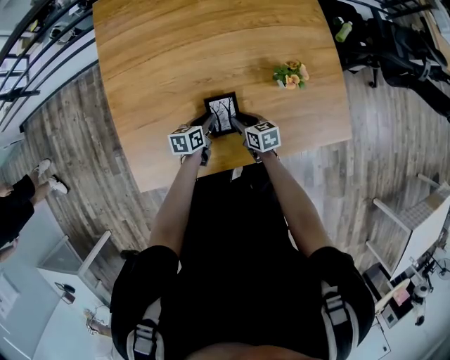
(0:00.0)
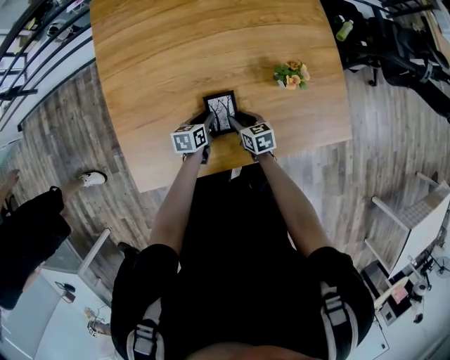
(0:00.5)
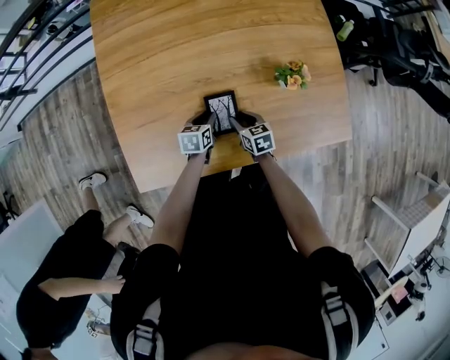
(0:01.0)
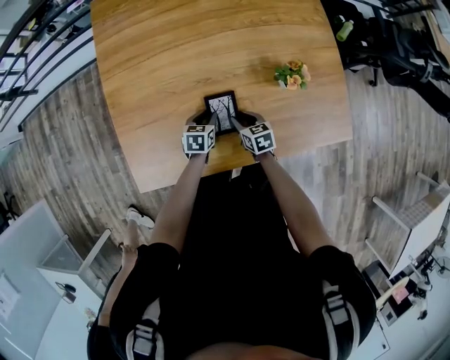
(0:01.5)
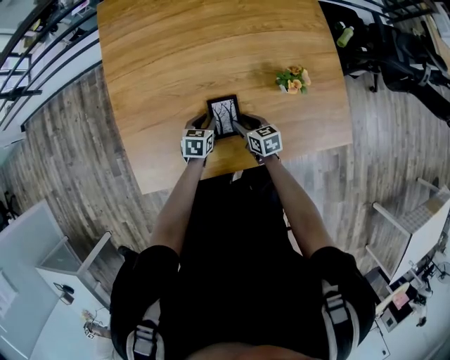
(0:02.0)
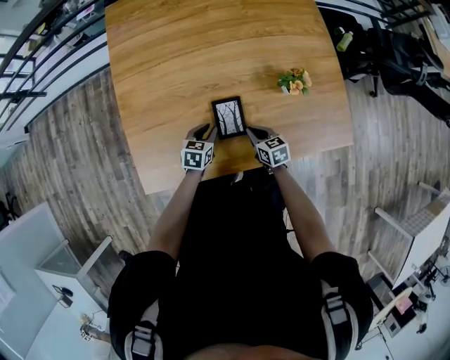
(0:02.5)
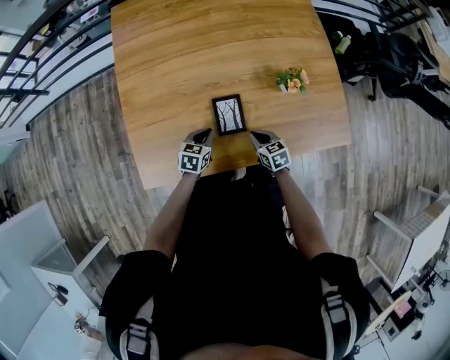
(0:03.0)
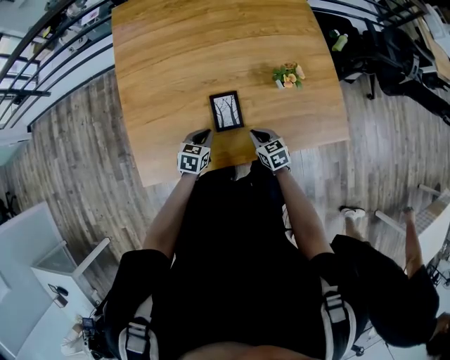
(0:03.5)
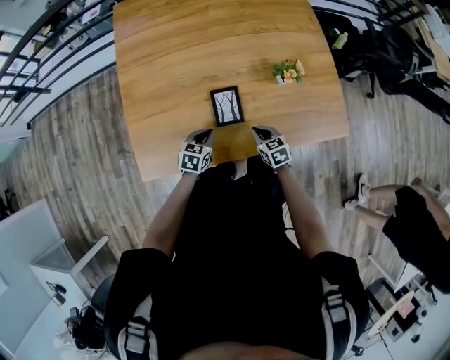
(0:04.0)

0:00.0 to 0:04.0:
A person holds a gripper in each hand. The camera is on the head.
0:00.0 to 0:02.0: The left gripper changes its angle by roughly 20 degrees.
0:02.0 to 0:04.0: The grippers both shift backward by approximately 10 cm. The right gripper closes. The left gripper closes its fingers.

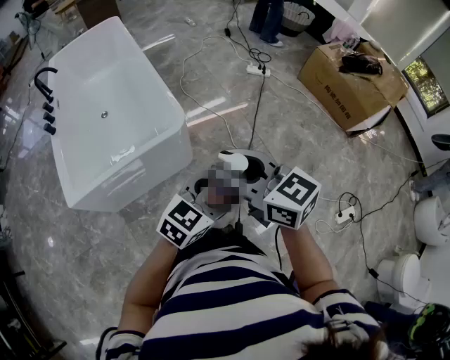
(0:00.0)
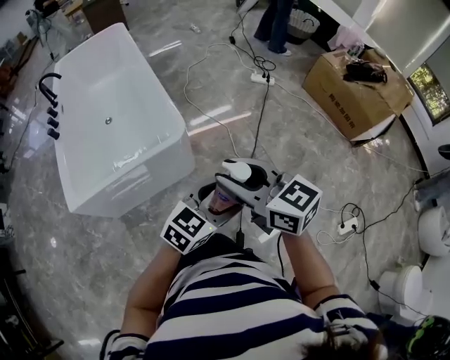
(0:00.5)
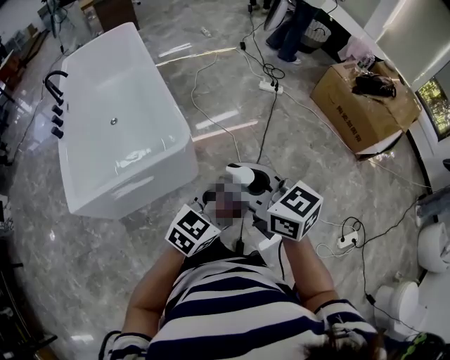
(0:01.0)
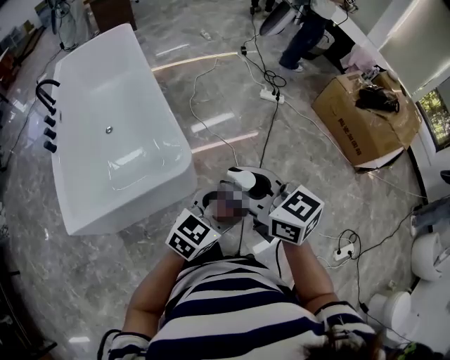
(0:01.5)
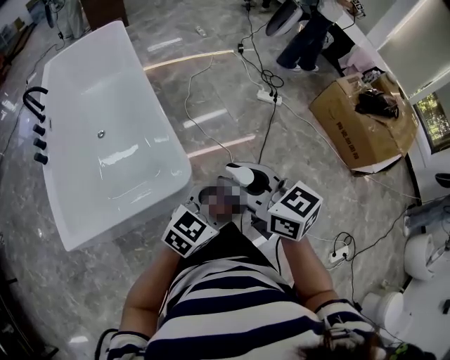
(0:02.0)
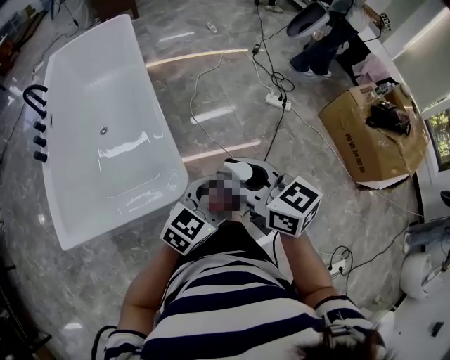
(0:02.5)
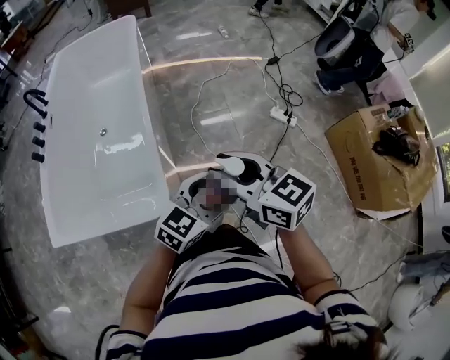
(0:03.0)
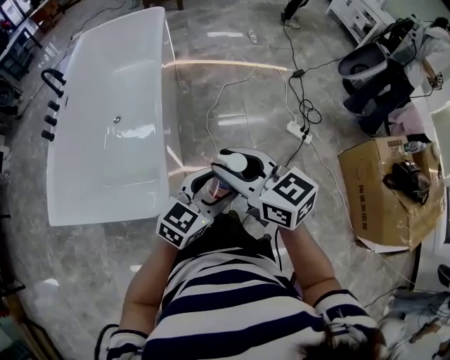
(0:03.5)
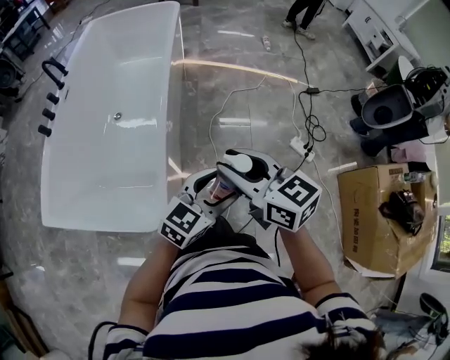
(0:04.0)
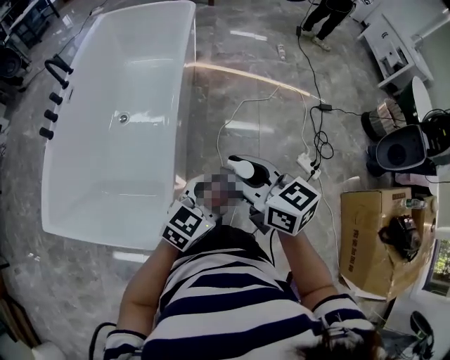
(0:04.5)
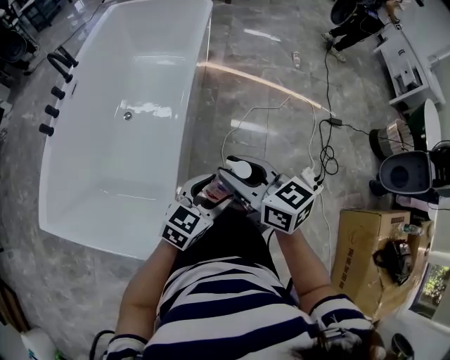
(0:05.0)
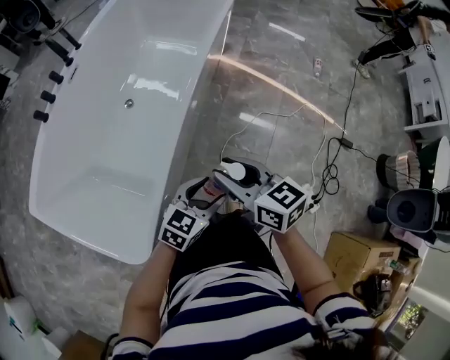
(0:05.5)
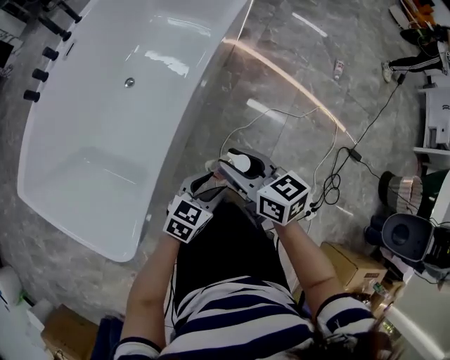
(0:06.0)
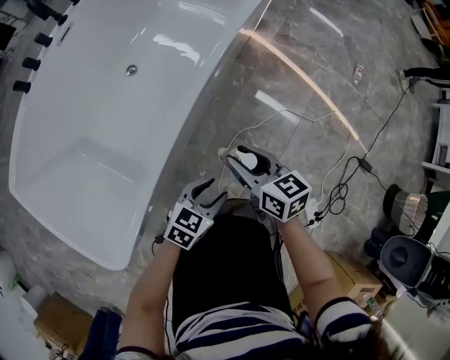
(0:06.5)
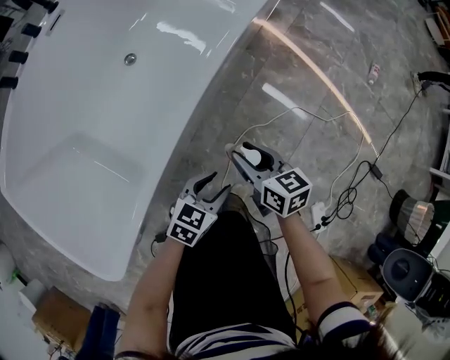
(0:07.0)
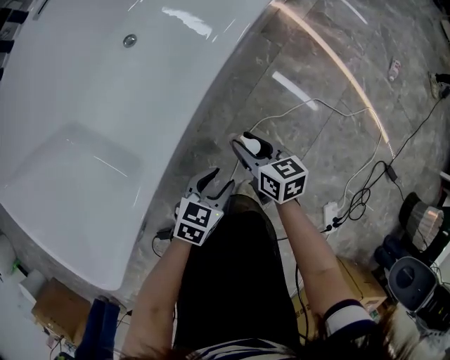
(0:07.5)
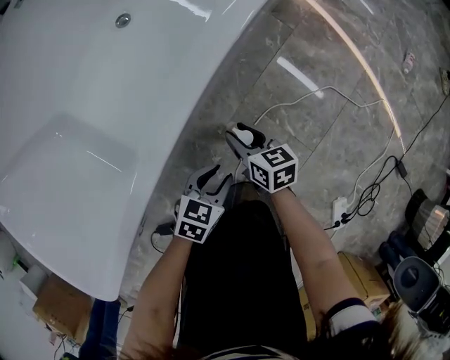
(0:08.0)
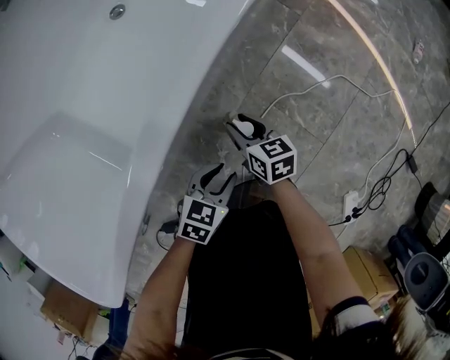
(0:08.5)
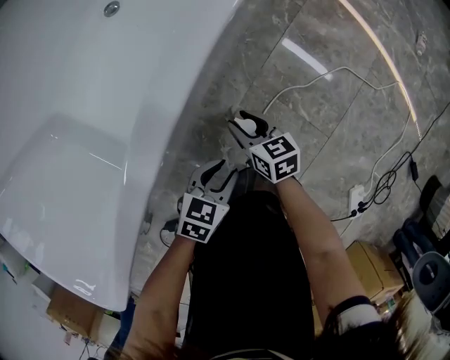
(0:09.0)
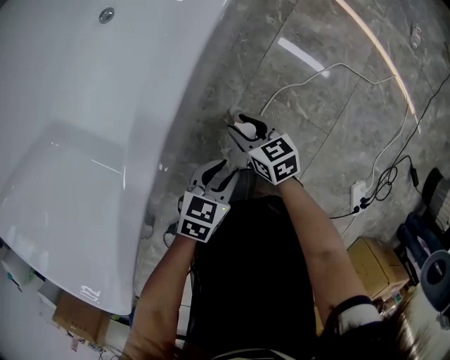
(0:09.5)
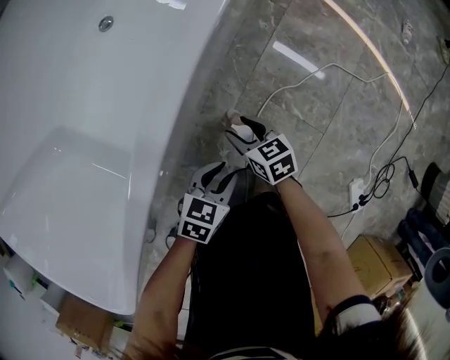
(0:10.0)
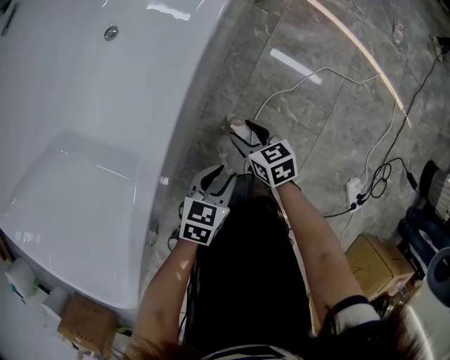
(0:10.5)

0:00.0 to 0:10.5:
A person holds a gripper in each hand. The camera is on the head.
0:00.0 to 0:02.0: The two grippers go some 20 cm forward.
0:02.0 to 0:04.0: The right gripper shifts by some 30 cm, and rotates approximately 20 degrees; the left gripper moves approximately 30 cm, and swivels approximately 30 degrees.
0:04.0 to 0:06.5: The two grippers go approximately 40 cm forward and downward. The left gripper changes its angle by about 40 degrees. The right gripper turns by some 30 degrees.
0:06.5 to 0:08.5: The grippers both shift downward by some 30 cm.
0:08.5 to 0:10.5: The grippers make only small movements.

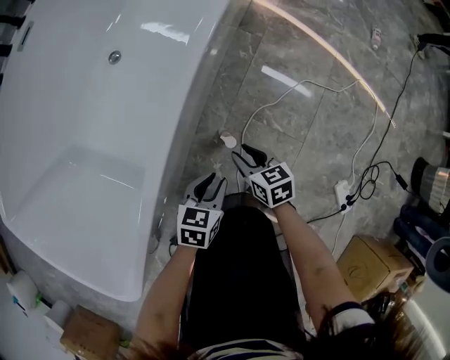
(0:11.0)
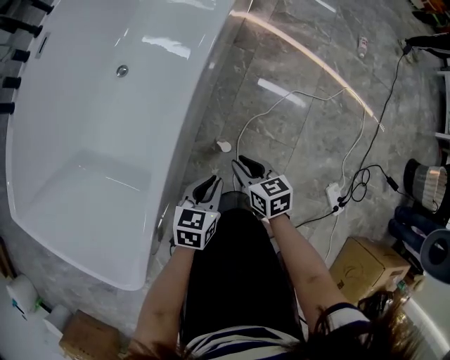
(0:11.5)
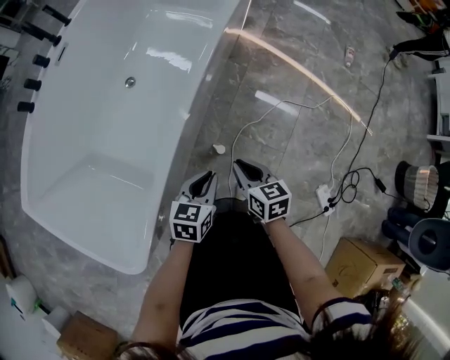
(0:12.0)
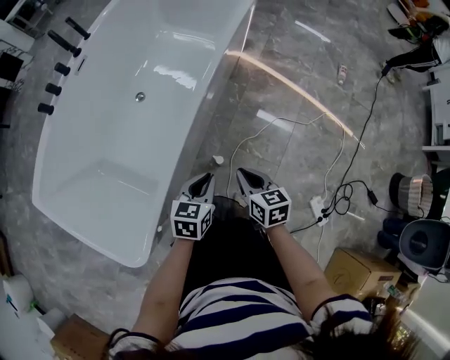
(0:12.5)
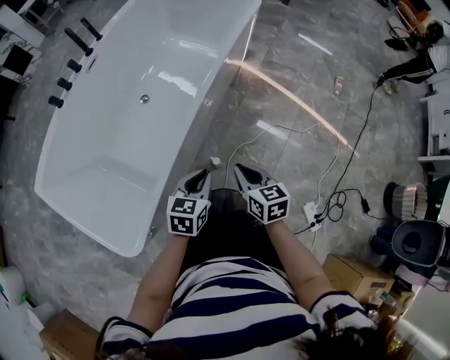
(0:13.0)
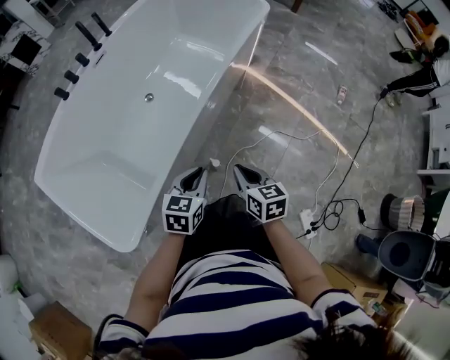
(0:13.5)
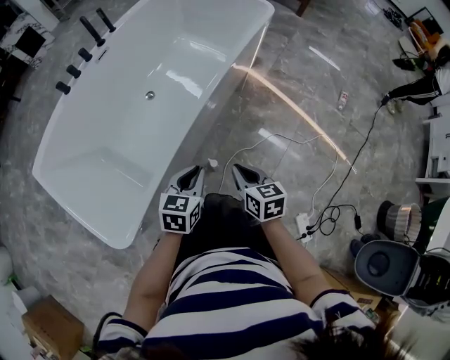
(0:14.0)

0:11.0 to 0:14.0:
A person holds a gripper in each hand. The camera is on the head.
0:11.0 to 0:12.5: Both grippers travel together upward, some 25 cm. The right gripper closes its fingers.
0:12.5 to 0:14.0: The two grippers go roughly 5 cm upward.

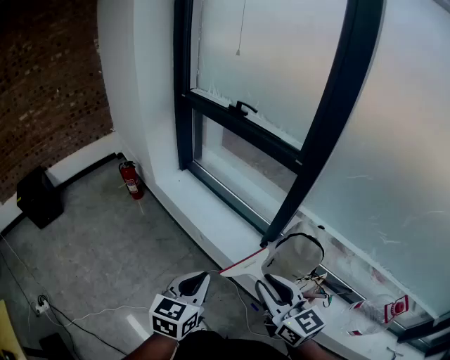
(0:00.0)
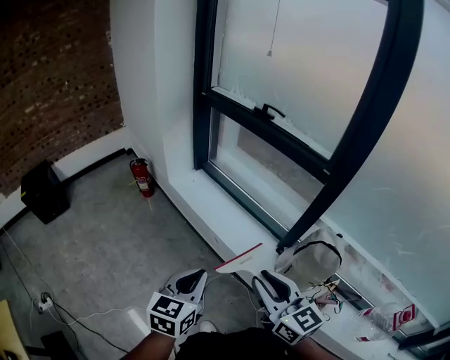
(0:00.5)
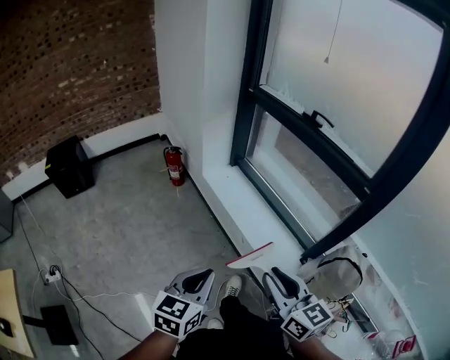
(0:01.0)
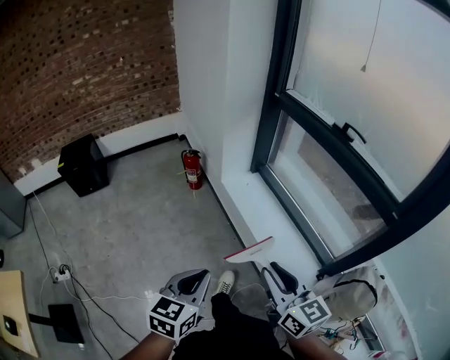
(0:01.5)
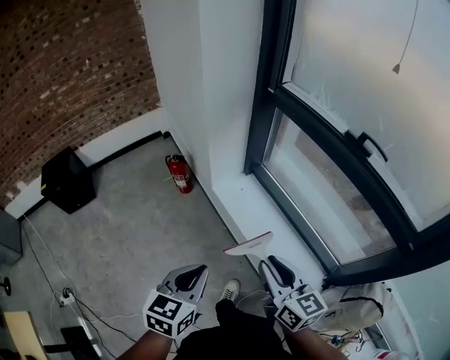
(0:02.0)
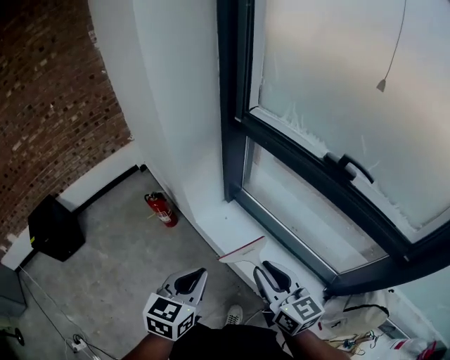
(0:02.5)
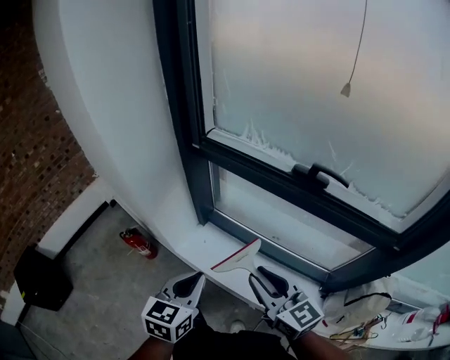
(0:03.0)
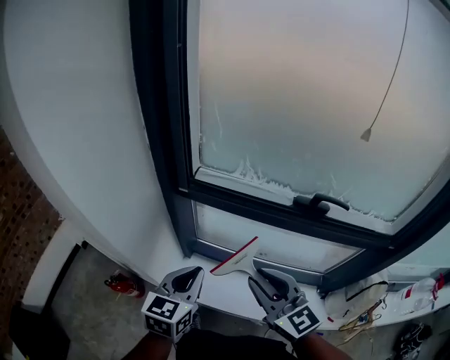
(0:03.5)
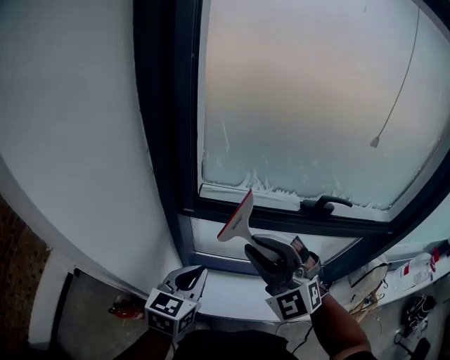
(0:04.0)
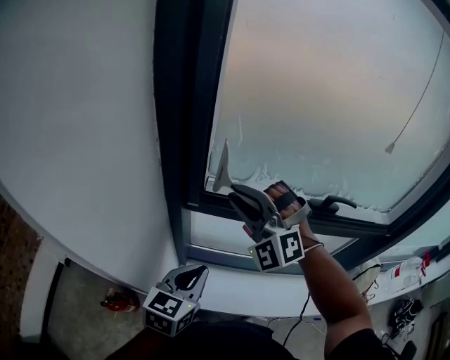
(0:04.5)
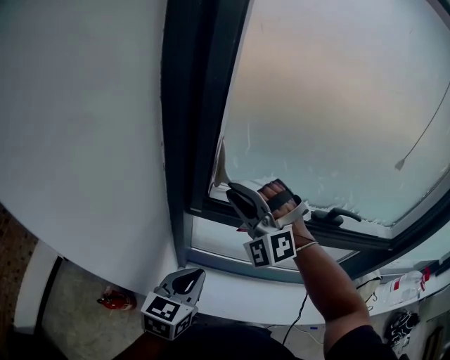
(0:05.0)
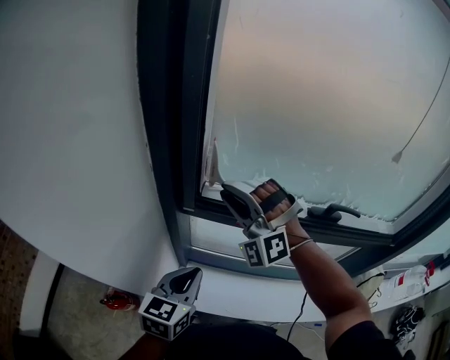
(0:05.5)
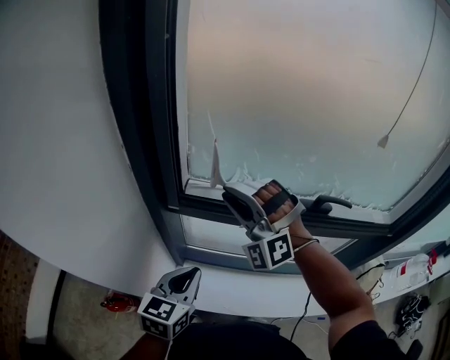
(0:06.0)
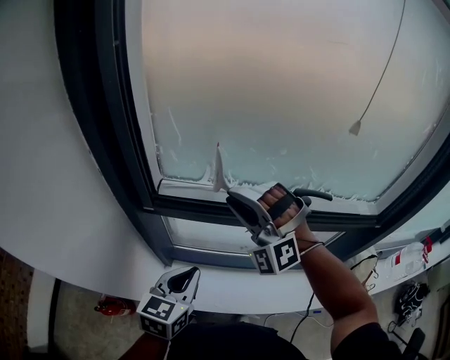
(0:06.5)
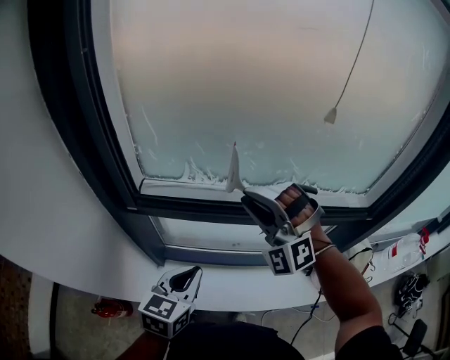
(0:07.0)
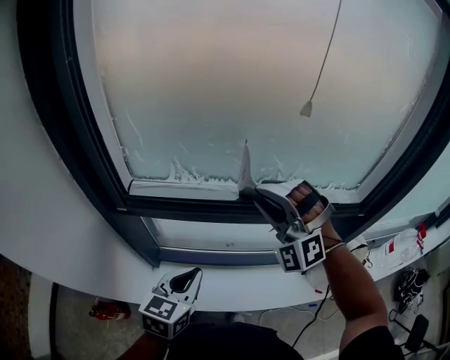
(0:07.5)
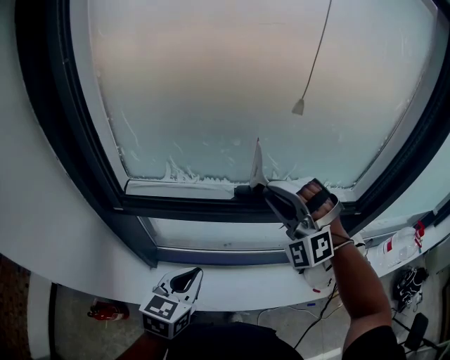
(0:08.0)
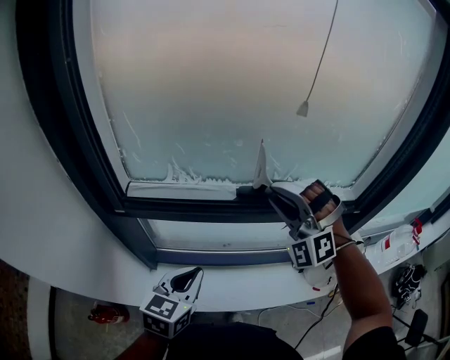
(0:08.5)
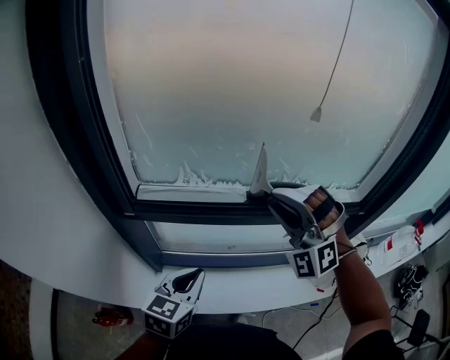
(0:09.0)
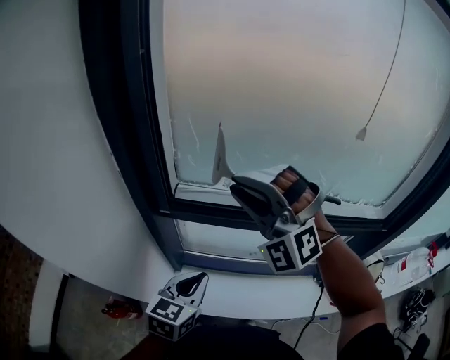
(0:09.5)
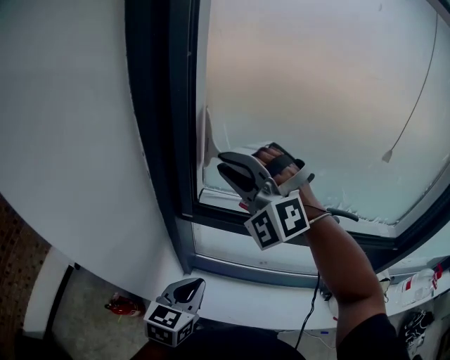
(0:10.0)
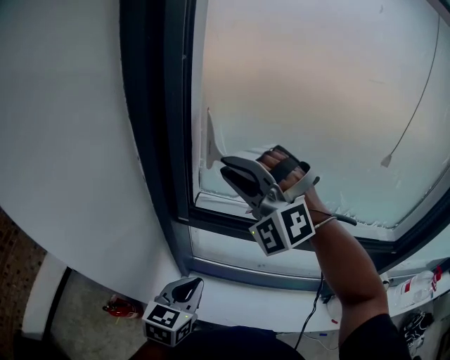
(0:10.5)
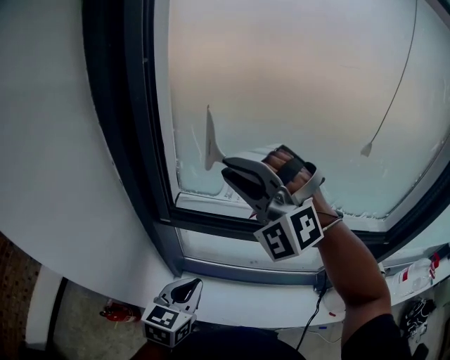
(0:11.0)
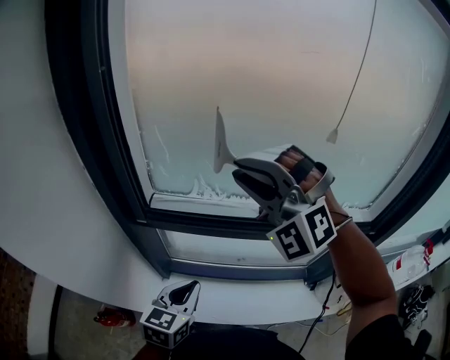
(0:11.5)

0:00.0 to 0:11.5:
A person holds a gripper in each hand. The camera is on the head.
0:00.0 to 0:02.0: Both grippers are carried forward and to the left, roughly 50 cm.
0:02.0 to 0:04.0: The pair of grippers is taken some 50 cm. The left gripper turns by approximately 50 degrees. The right gripper rolls counterclockwise, seen from behind, by some 70 degrees.
0:04.0 to 0:06.0: The right gripper travels forward by approximately 15 cm, and turns by approximately 30 degrees.
0:06.0 to 0:07.5: The right gripper is displaced to the right by some 25 cm. The left gripper moves to the right, approximately 15 cm.
0:07.5 to 0:09.5: The left gripper moves to the left, about 10 cm, while the right gripper heads to the left, covering some 20 cm.
0:09.5 to 0:11.5: The right gripper heads to the right and upward, covering about 10 cm.
